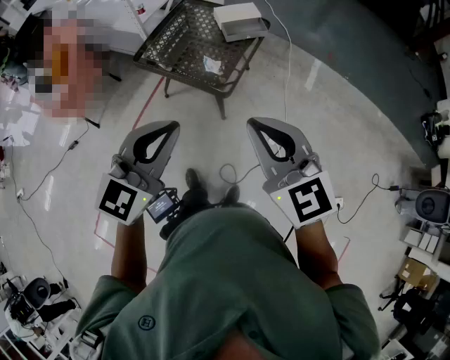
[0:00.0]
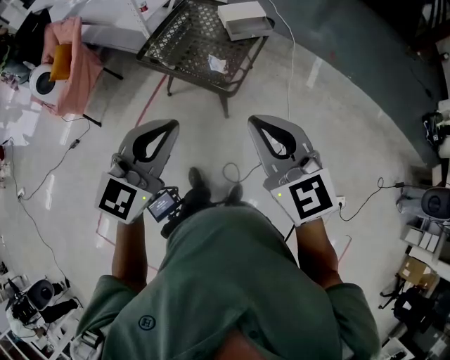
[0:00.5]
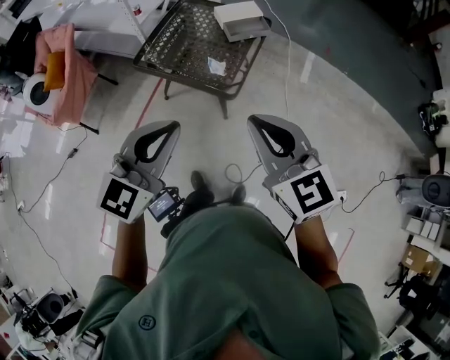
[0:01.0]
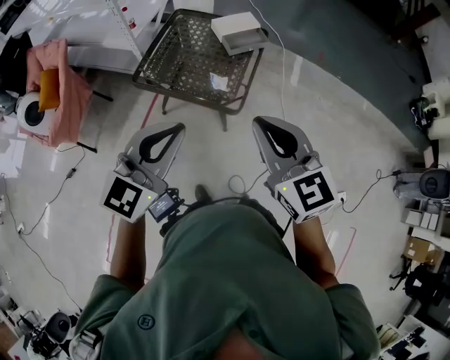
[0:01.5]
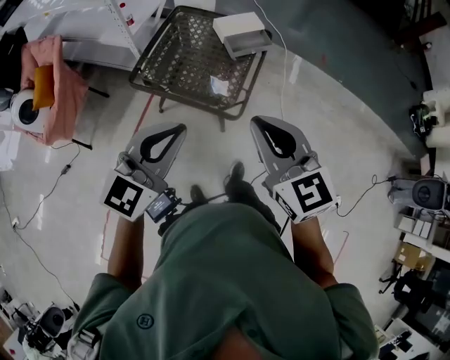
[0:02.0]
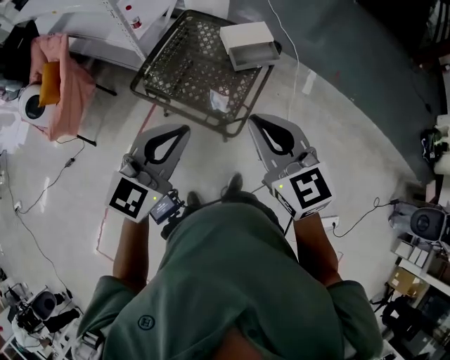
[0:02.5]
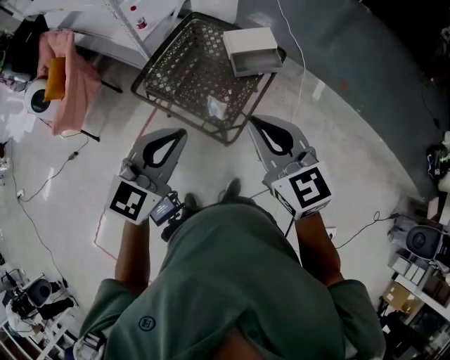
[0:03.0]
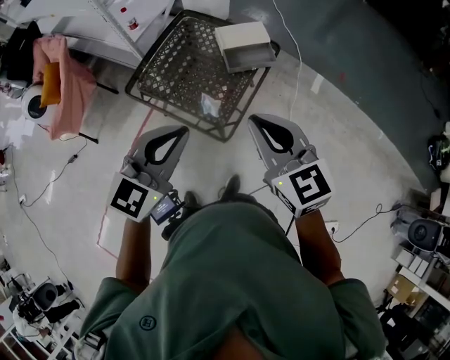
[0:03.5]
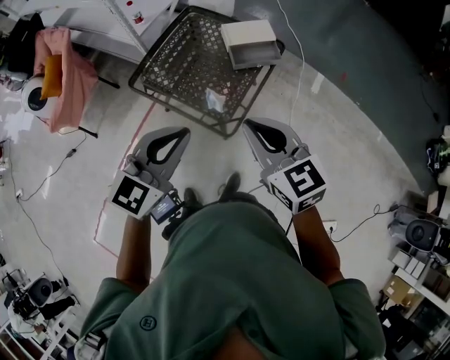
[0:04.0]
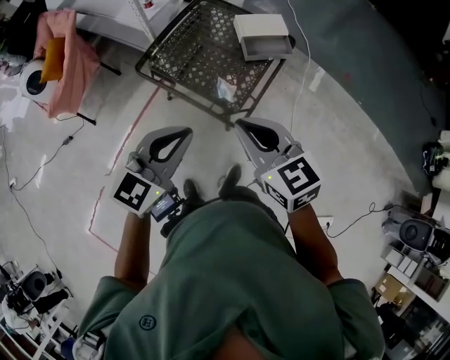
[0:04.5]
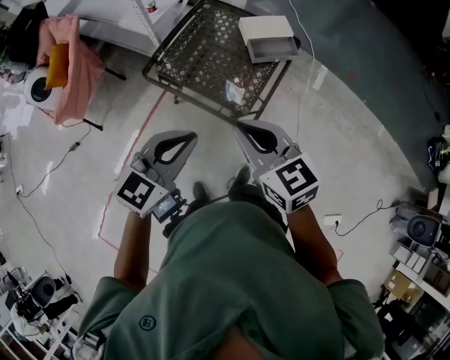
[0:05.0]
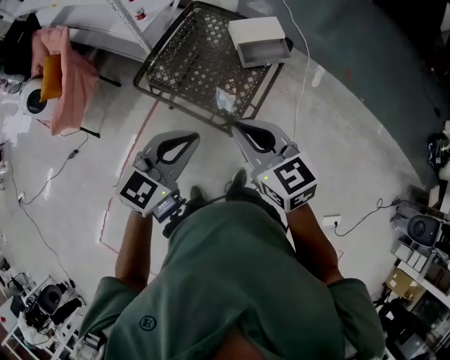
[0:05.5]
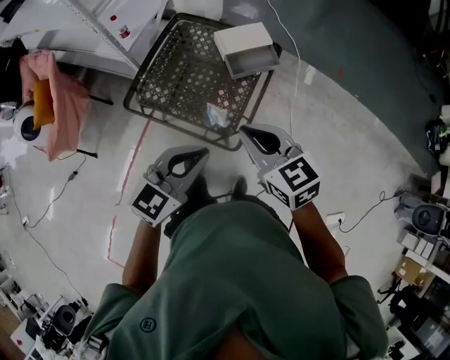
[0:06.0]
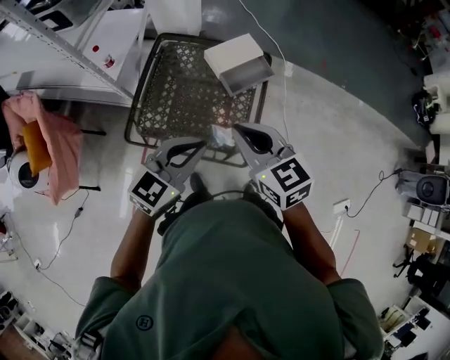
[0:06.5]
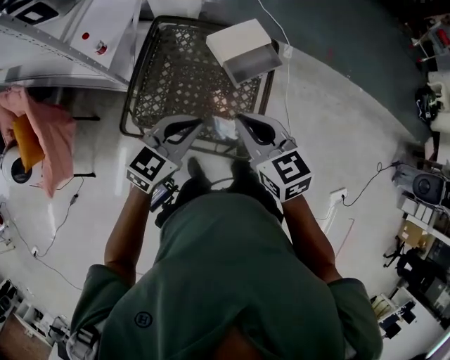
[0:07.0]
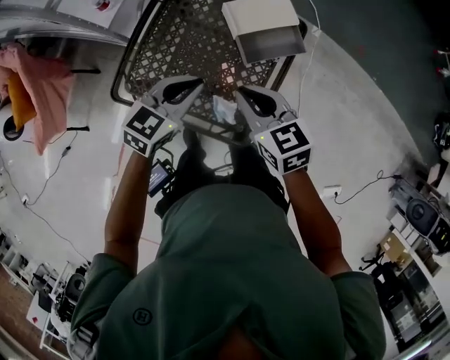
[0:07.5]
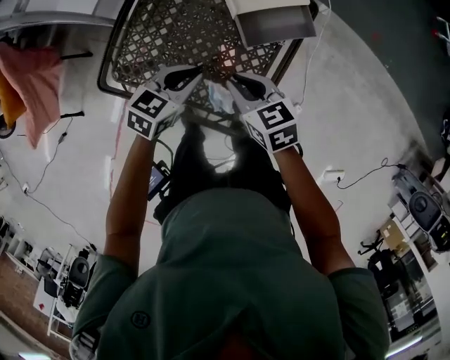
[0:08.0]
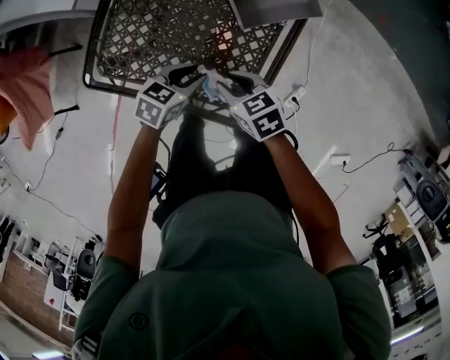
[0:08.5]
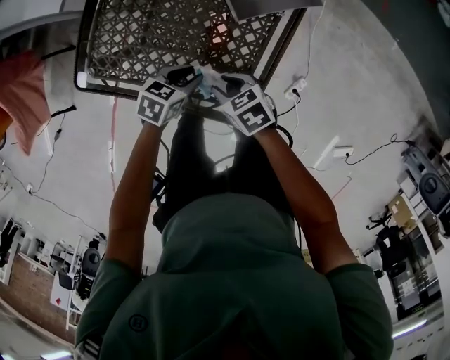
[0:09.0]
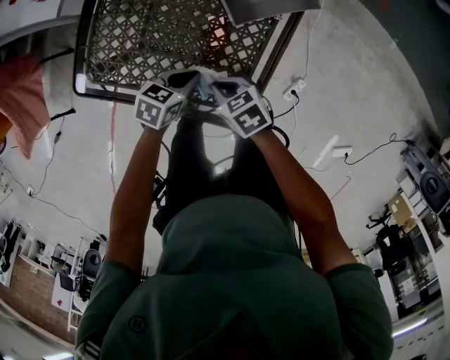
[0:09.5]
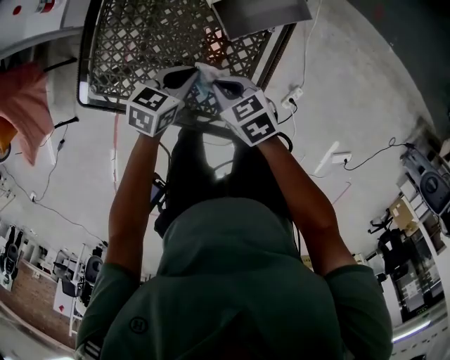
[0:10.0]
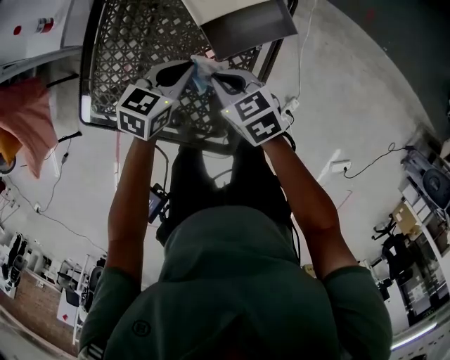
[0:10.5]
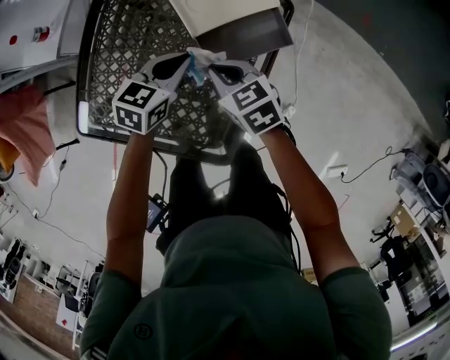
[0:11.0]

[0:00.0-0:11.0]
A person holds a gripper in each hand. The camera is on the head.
0:00.0 to 0:02.0: Both grippers move forward and to the left, approximately 20 cm.
0:02.0 to 0:03.5: The right gripper heads forward and to the right, covering roughly 20 cm. The left gripper shifts about 20 cm to the right and forward.
0:03.5 to 0:05.5: The left gripper heads to the left and downward, covering roughly 10 cm. Meanwhile the right gripper goes about 10 cm to the left.
0:05.5 to 0:07.5: The two grippers go approximately 35 cm forward and downward.
0:07.5 to 0:09.0: Both grippers travel together downward, some 30 cm. The right gripper rotates about 30 degrees, and opens up. The left gripper changes its angle by some 30 degrees, and opens its fingers.
0:09.0 to 0:11.0: The right gripper moves roughly 20 cm, and closes up. Meanwhile the left gripper moves approximately 25 cm, and closes.

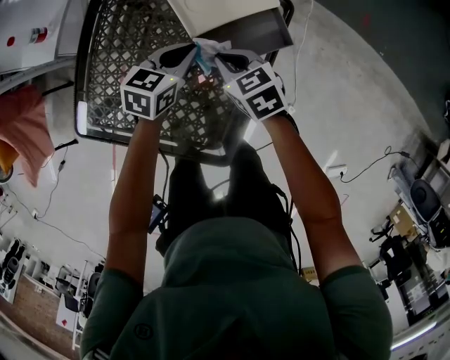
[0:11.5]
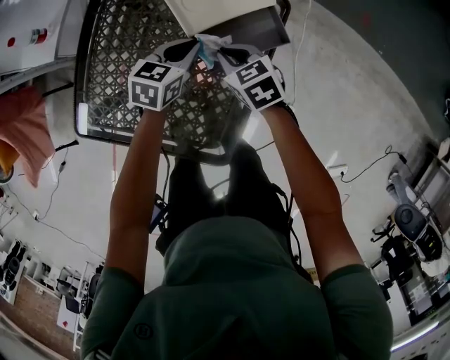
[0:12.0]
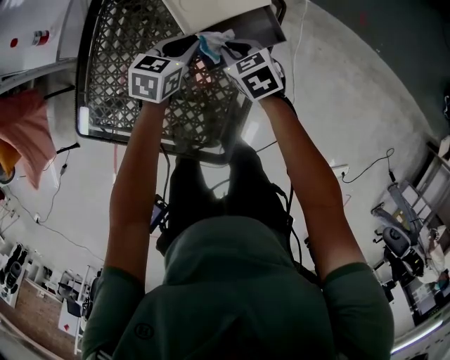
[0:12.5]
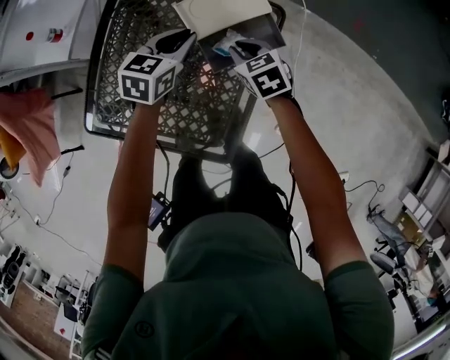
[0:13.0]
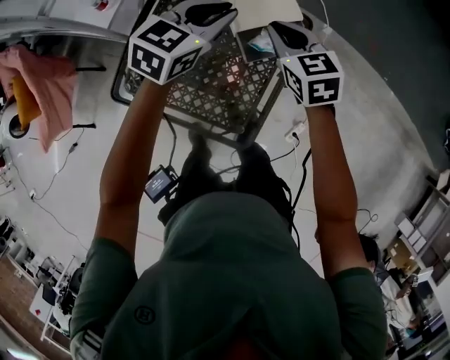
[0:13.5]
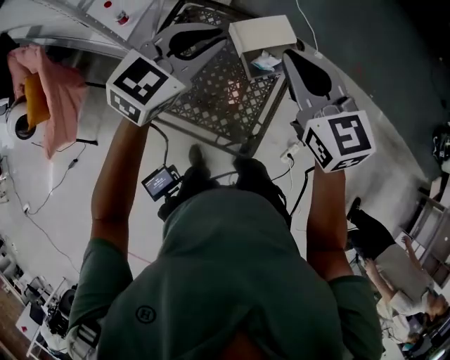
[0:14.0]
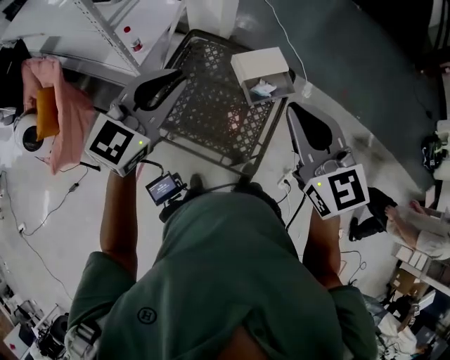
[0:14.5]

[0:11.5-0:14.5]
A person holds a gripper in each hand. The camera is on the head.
0:11.5 to 0:13.0: The left gripper goes some 5 cm upward.
0:13.0 to 0:14.5: Both grippers move upward and backward, some 50 cm. The left gripper turns by some 40 degrees, while the right gripper tilts its fingers about 40 degrees upward.

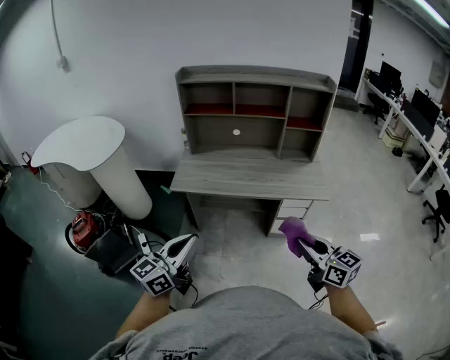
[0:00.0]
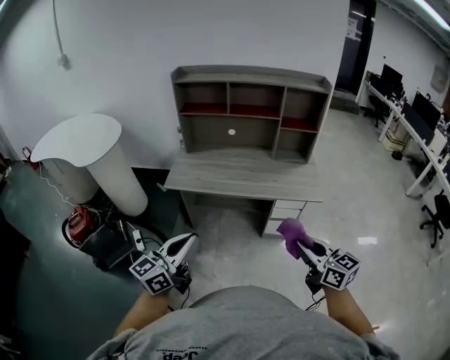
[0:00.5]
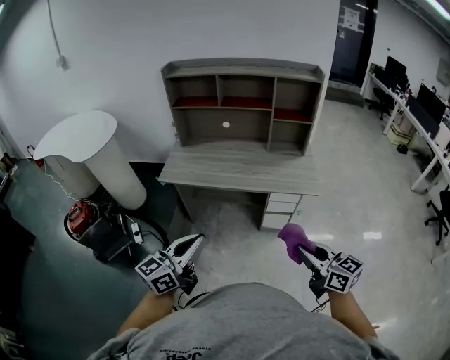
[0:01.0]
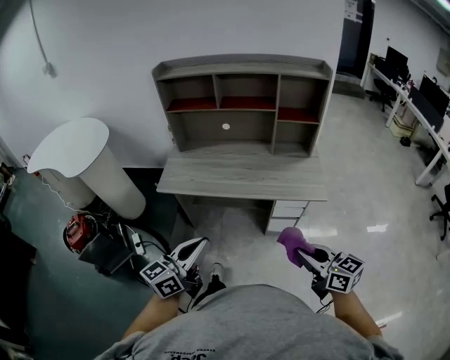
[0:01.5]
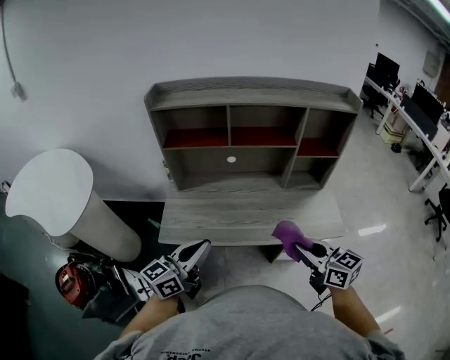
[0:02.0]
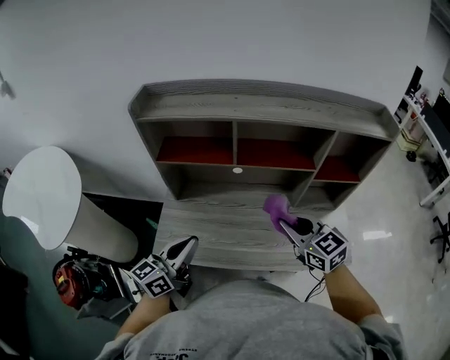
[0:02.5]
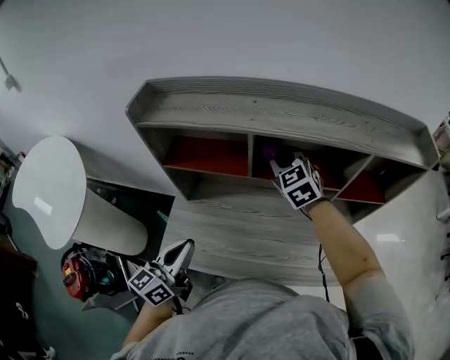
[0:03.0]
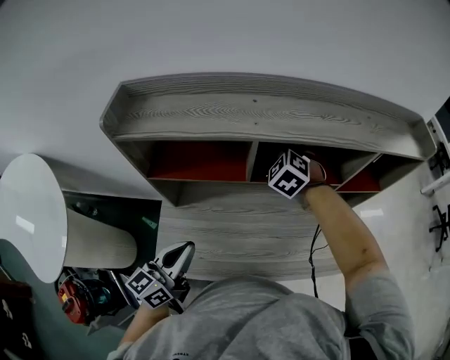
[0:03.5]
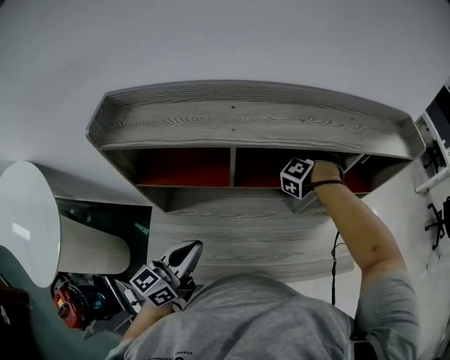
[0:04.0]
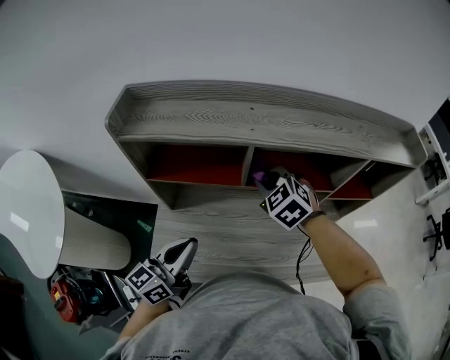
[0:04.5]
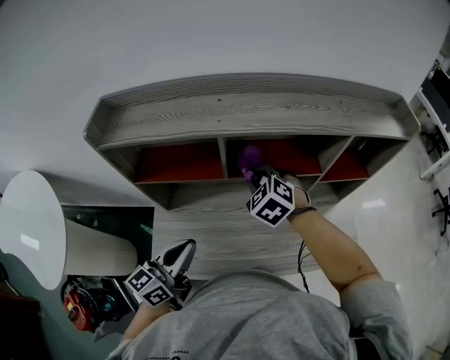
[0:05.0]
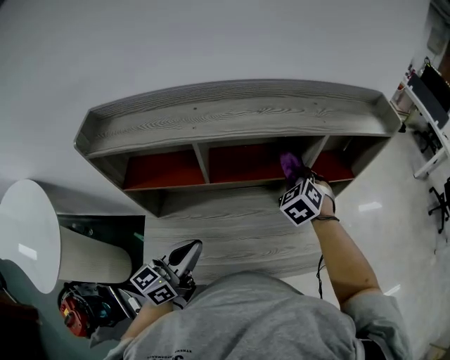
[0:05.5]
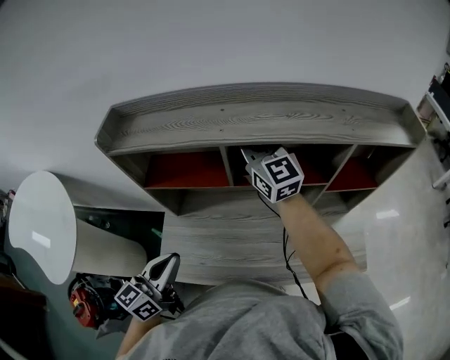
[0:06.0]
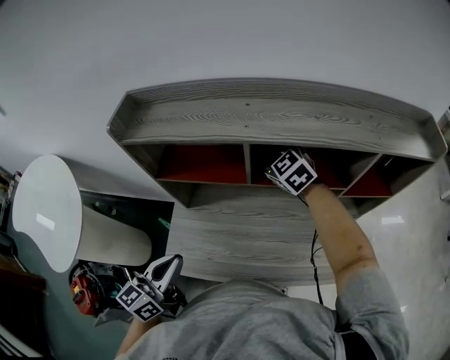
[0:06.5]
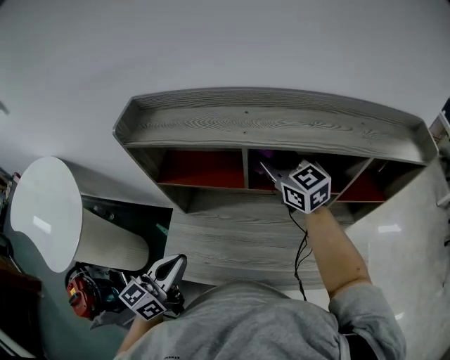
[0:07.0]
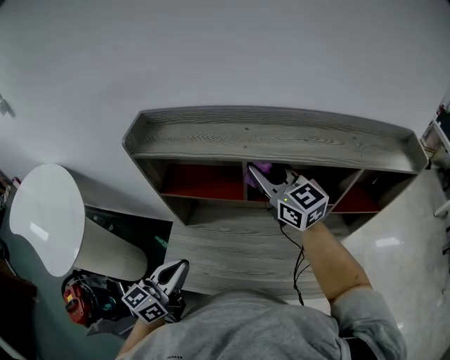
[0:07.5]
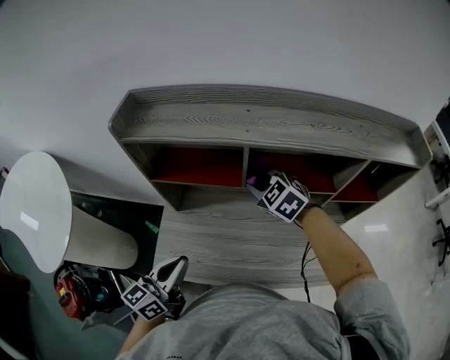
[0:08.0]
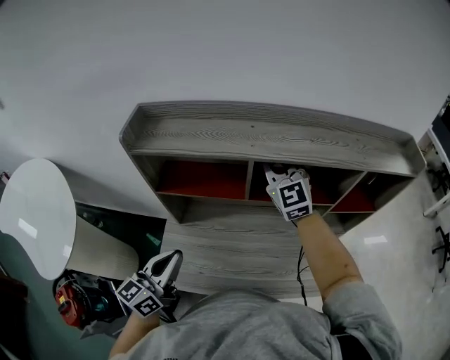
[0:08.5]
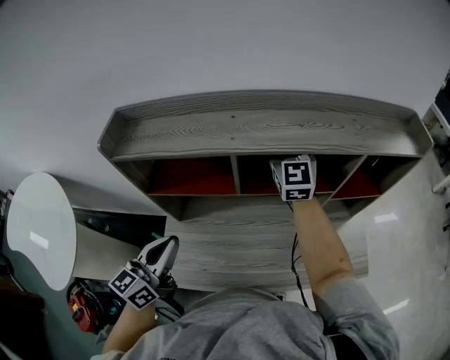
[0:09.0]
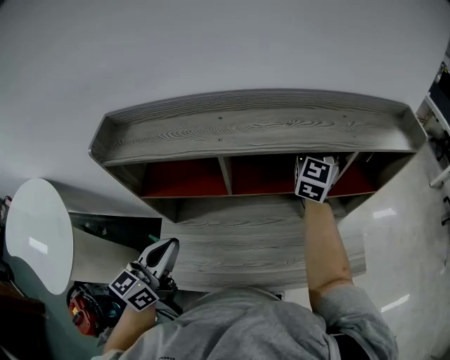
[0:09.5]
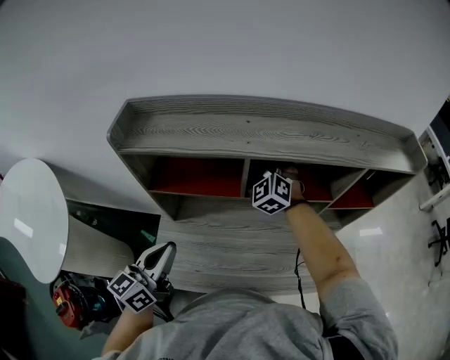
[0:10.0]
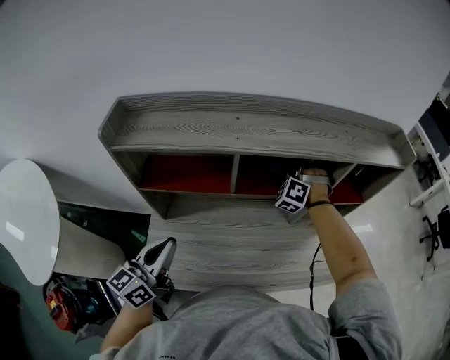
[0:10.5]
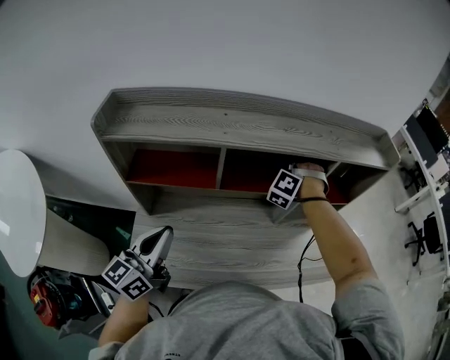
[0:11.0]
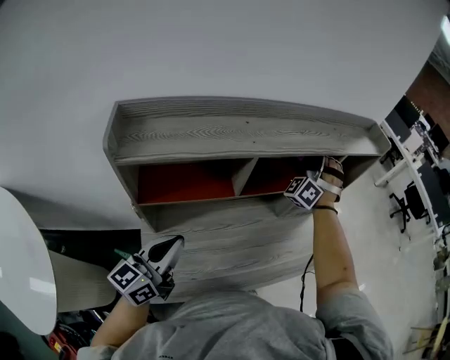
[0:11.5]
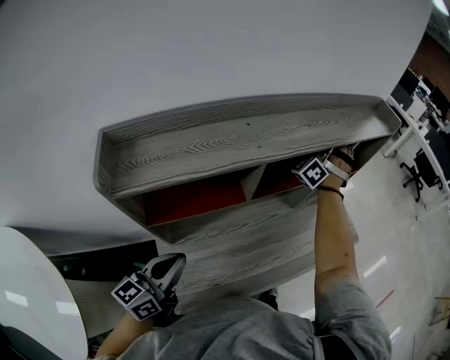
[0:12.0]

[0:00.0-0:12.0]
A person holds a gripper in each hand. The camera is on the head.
0:00.0 to 0:02.0: The grippers both shift forward by roughly 30 cm.
0:02.0 to 0:04.0: The right gripper shifts by about 60 cm, and changes its angle by approximately 120 degrees, while the left gripper shifts by some 25 cm.
0:04.0 to 0:06.0: The right gripper ends up some 30 cm from where it was, and tilts its fingers some 50 degrees upward; the left gripper ends up about 10 cm from where it was.
0:06.0 to 0:08.0: The right gripper goes up and down, about 15 cm each way, reversing 2 times, and tilts its fingers some 50 degrees downward.
0:08.0 to 0:10.0: The right gripper reaches about 15 cm upward, then returns, and turns by some 40 degrees. The left gripper changes place by some 5 cm.
0:10.0 to 0:12.0: The left gripper shifts by about 5 cm, and rotates some 30 degrees. Meanwhile the right gripper moves some 30 cm, and swivels approximately 80 degrees.
